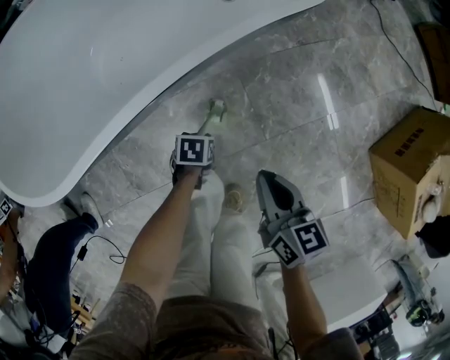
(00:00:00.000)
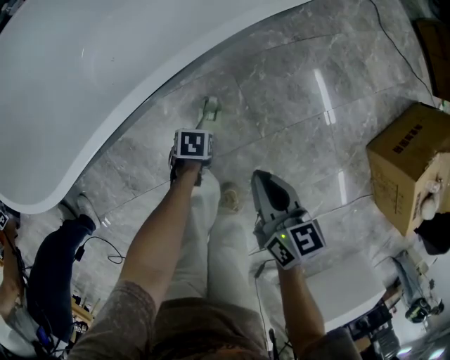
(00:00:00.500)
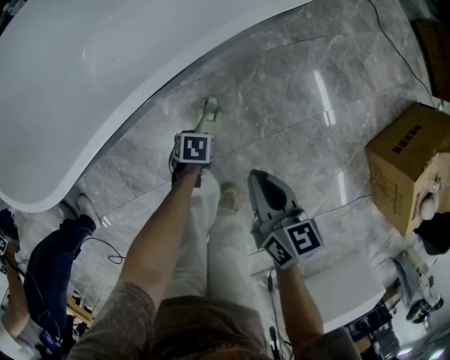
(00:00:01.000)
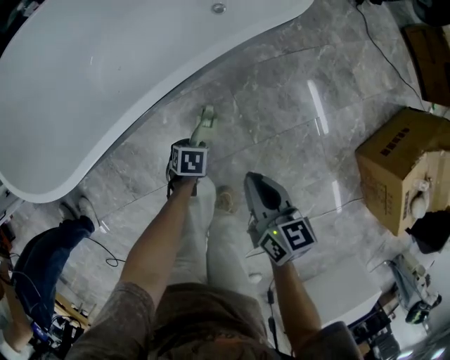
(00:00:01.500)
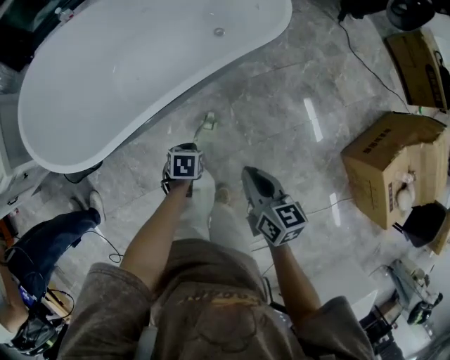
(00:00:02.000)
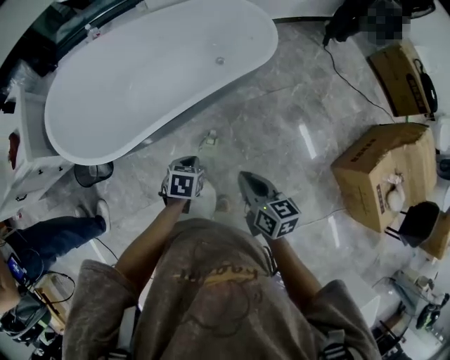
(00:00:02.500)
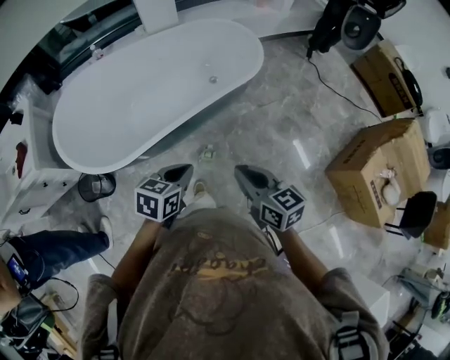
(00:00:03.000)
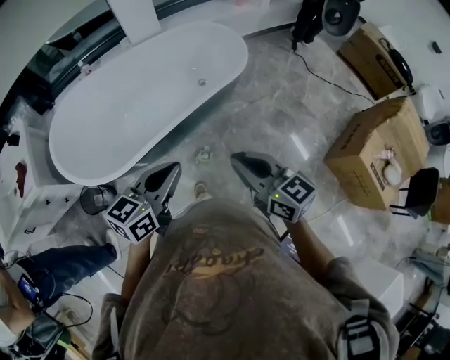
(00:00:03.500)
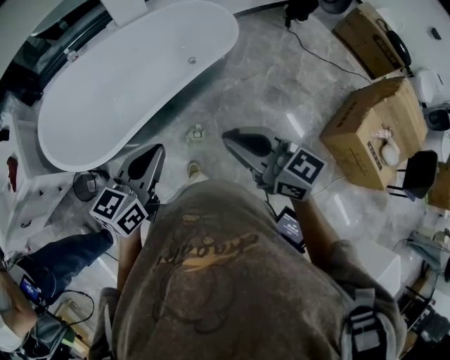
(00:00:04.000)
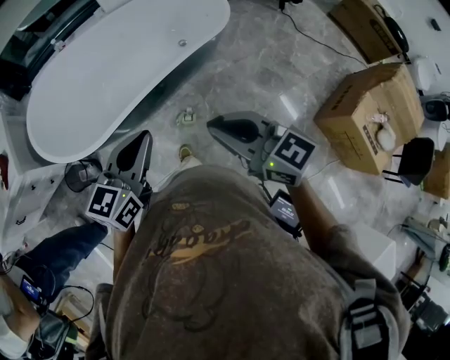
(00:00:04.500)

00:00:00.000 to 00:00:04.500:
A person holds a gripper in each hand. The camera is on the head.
00:00:00.000 to 00:00:02.000: Both grippers travel together upward, approximately 15 cm. The left gripper closes its fingers.
00:00:02.000 to 00:00:04.500: The right gripper is displaced upward by about 25 cm, and swivels some 40 degrees; the left gripper moves upward, about 40 cm, and tips its fingers upward by roughly 60 degrees.

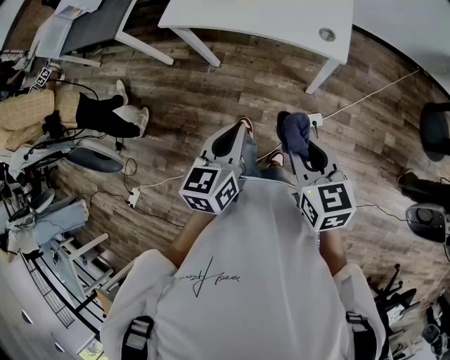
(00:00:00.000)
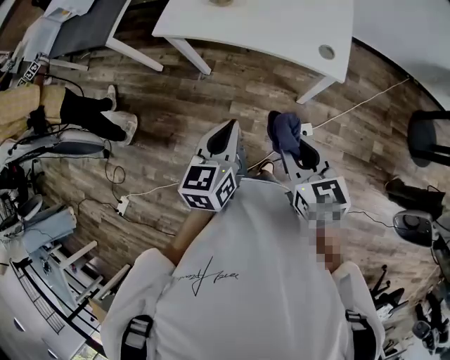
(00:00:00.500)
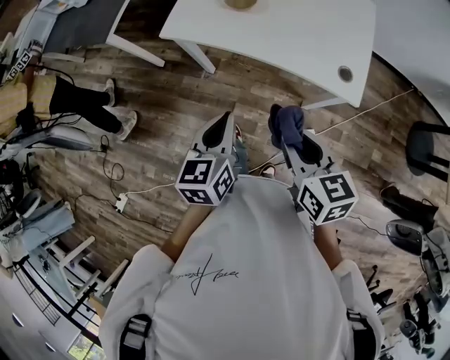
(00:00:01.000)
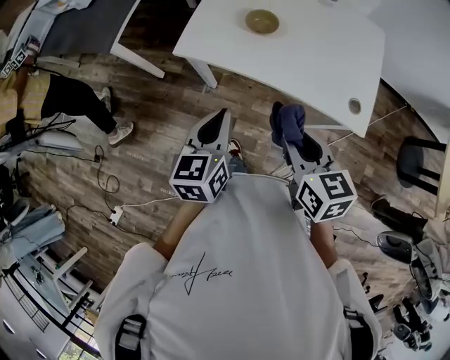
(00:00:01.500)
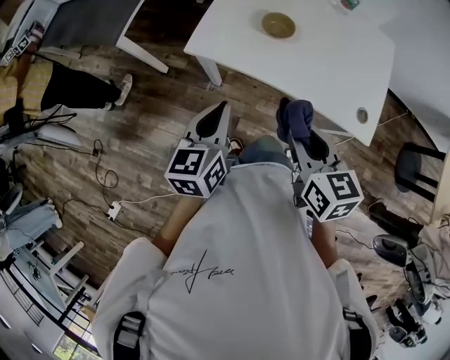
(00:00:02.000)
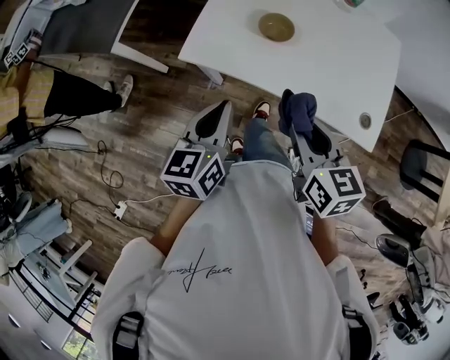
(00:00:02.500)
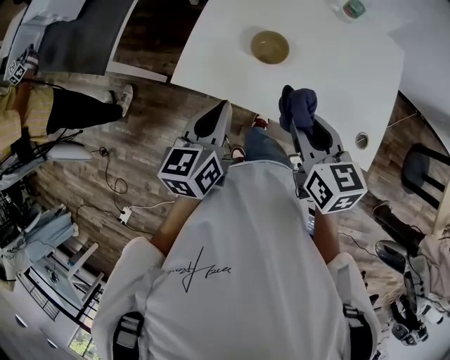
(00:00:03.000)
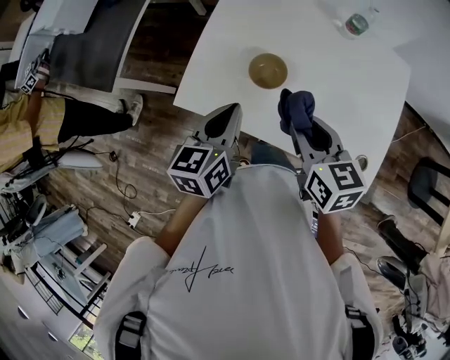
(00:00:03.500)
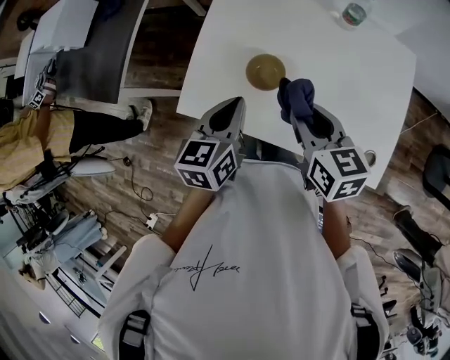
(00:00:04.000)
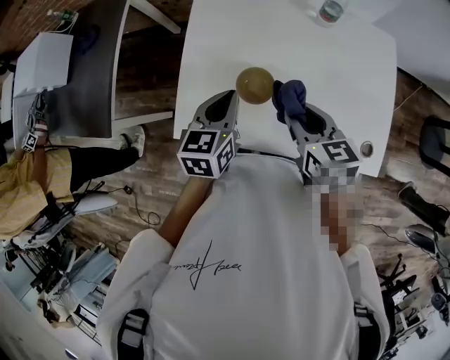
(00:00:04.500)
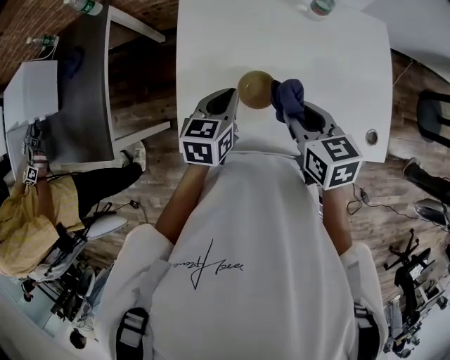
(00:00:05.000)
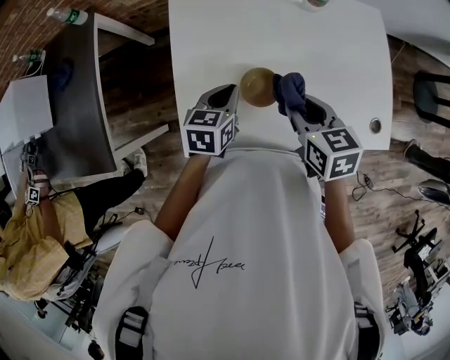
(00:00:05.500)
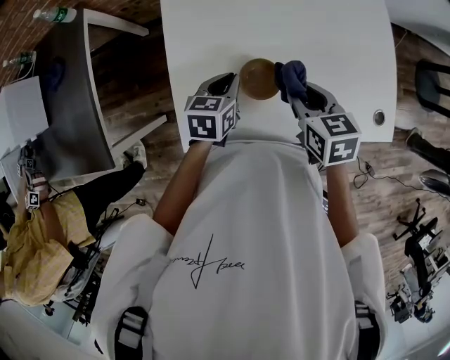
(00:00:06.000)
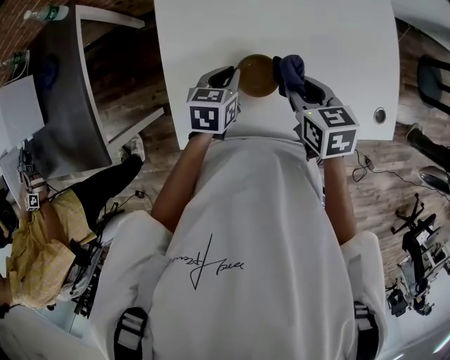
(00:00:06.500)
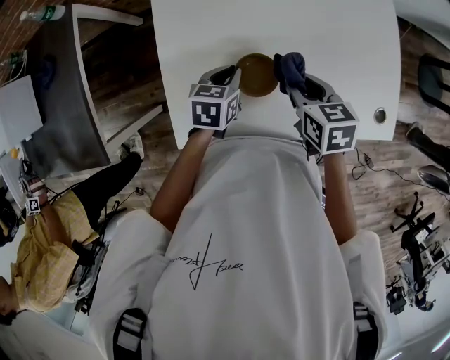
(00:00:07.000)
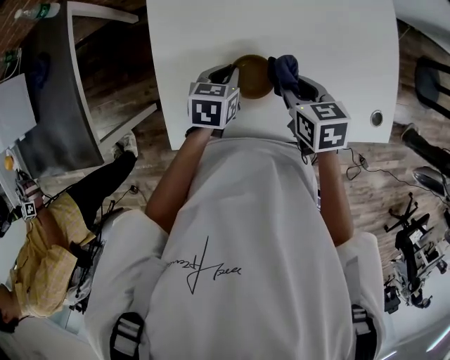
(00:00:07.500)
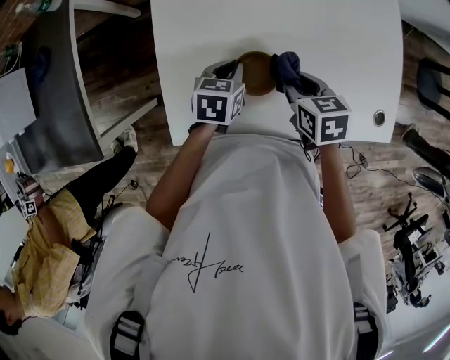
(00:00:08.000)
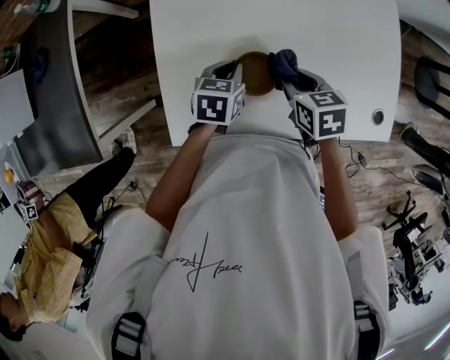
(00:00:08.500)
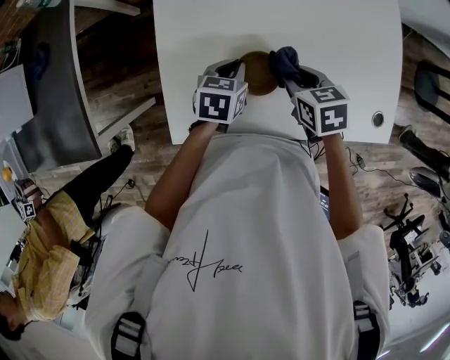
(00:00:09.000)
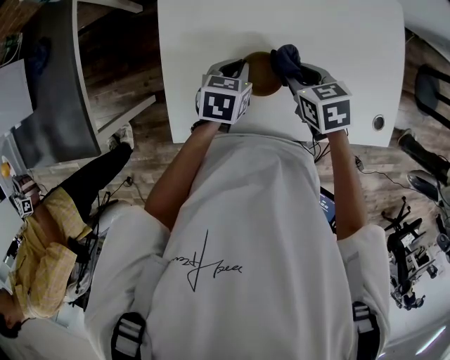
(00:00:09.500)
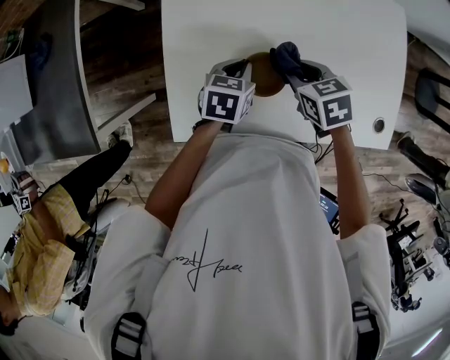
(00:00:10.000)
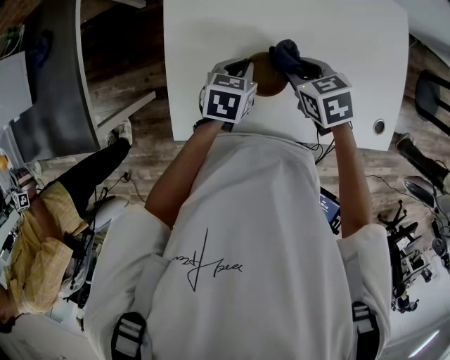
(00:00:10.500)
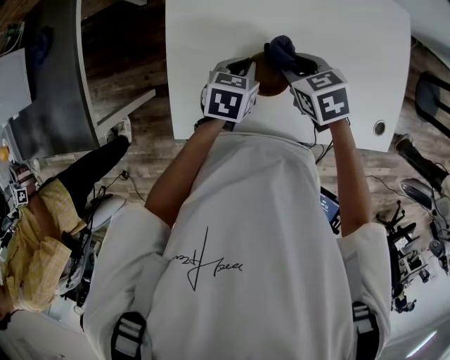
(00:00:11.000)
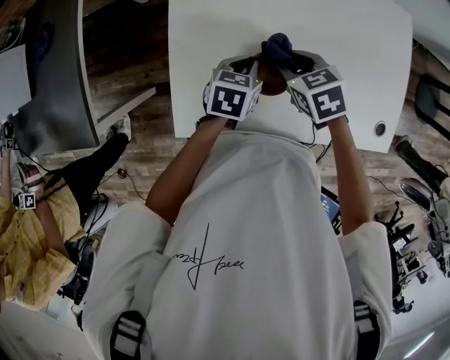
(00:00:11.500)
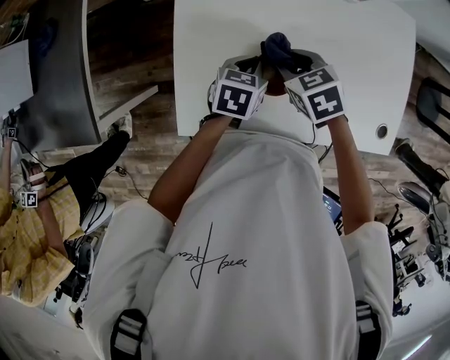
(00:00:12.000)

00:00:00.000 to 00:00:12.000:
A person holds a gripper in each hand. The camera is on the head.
00:00:00.000 to 00:00:02.000: Both grippers travel together forward and to the left, roughly 35 cm.
00:00:02.000 to 00:00:04.000: The left gripper is displaced forward and to the right by about 25 cm, while the right gripper heads forward, covering approximately 25 cm.
00:00:04.000 to 00:00:06.000: The right gripper goes about 10 cm downward, and rotates about 20 degrees, while the left gripper heads downward, covering approximately 15 cm, and turns by about 30 degrees.
00:00:06.000 to 00:00:08.000: The right gripper travels downward by about 5 cm. The left gripper shifts by roughly 5 cm.
00:00:08.000 to 00:00:10.000: The grippers move only a little.
00:00:10.000 to 00:00:12.000: The right gripper moves to the left, roughly 5 cm.

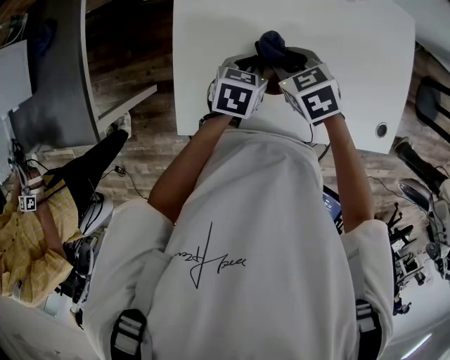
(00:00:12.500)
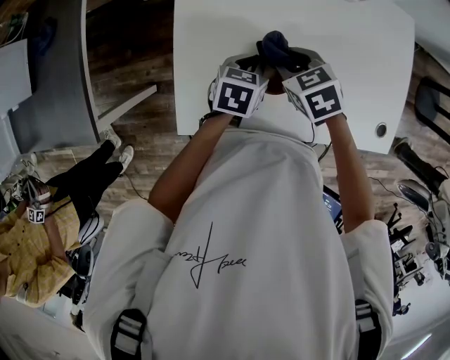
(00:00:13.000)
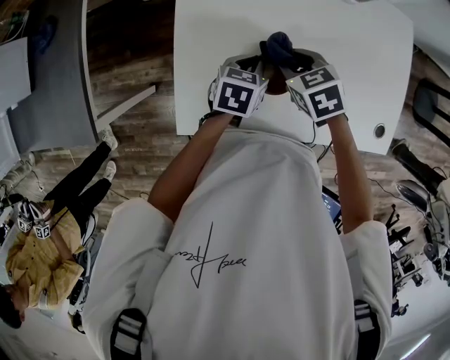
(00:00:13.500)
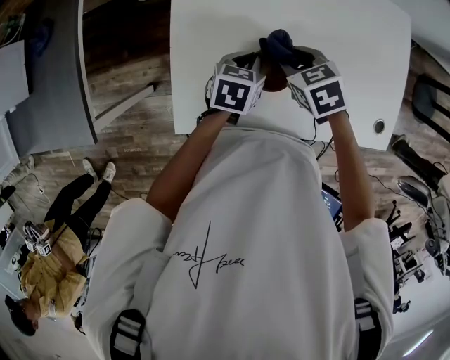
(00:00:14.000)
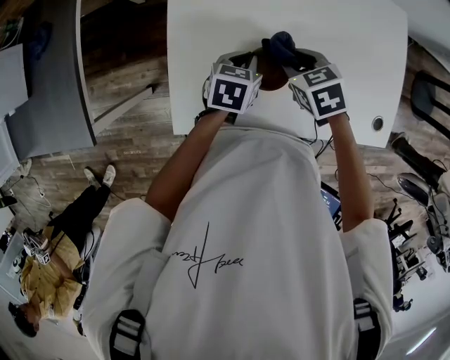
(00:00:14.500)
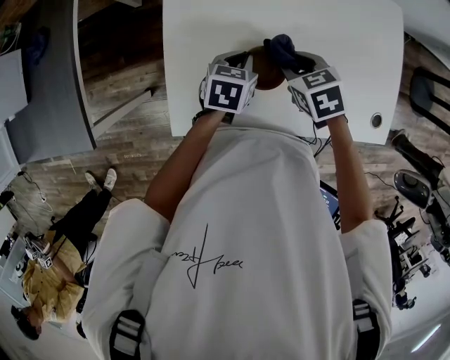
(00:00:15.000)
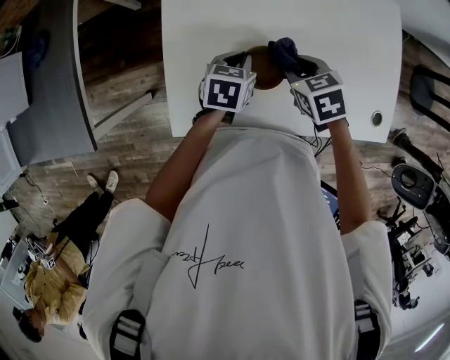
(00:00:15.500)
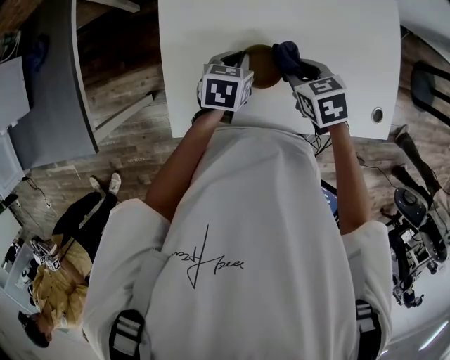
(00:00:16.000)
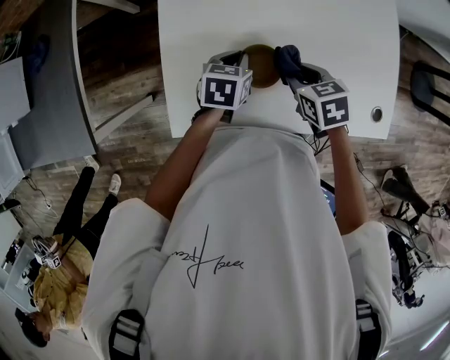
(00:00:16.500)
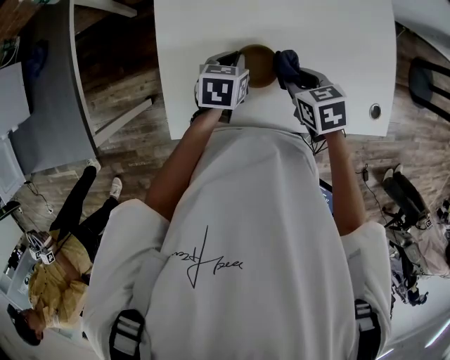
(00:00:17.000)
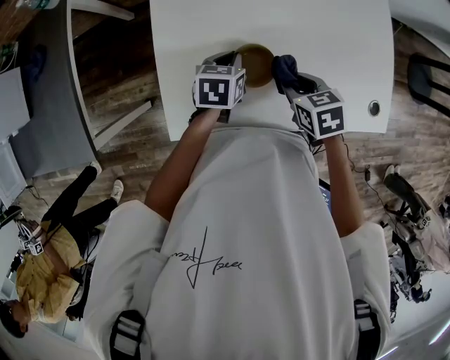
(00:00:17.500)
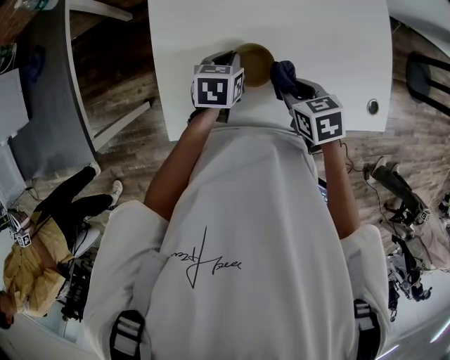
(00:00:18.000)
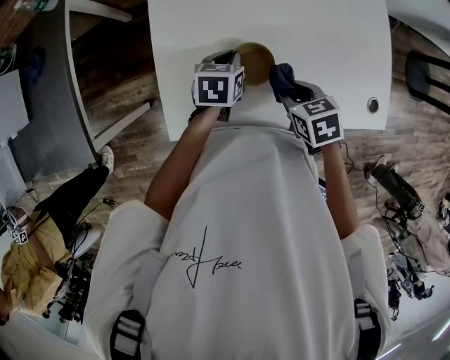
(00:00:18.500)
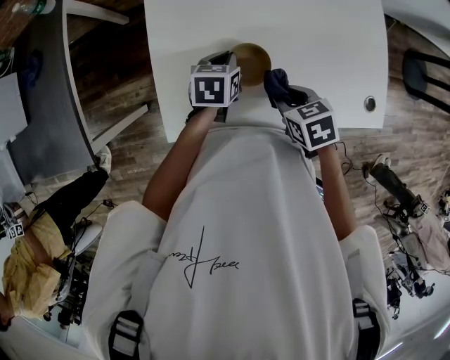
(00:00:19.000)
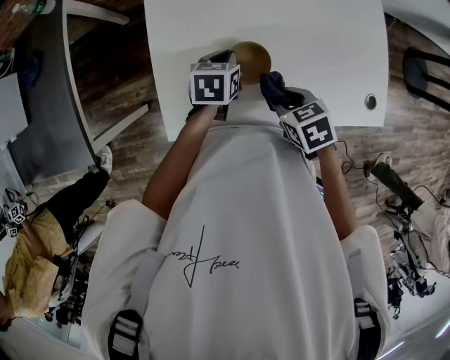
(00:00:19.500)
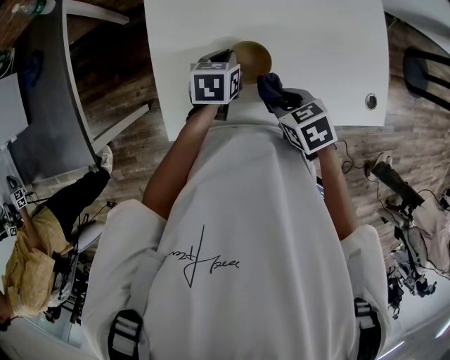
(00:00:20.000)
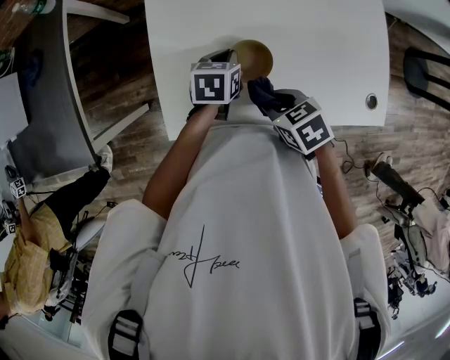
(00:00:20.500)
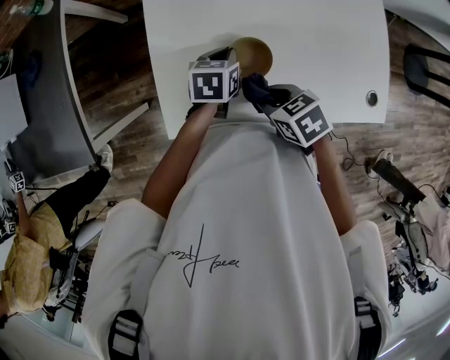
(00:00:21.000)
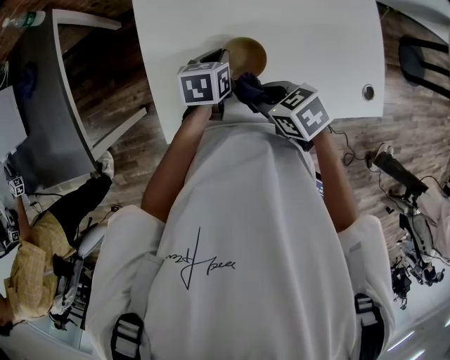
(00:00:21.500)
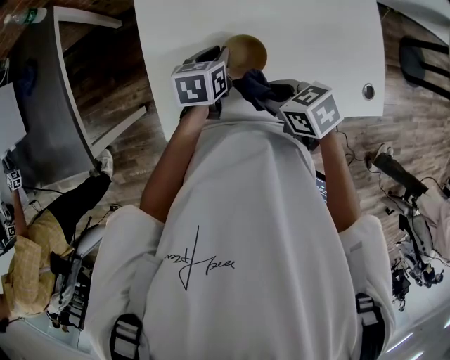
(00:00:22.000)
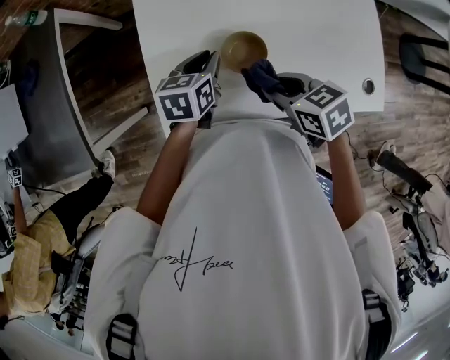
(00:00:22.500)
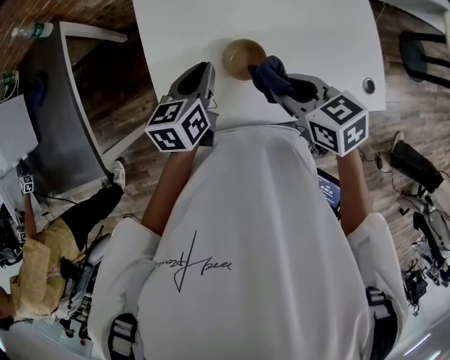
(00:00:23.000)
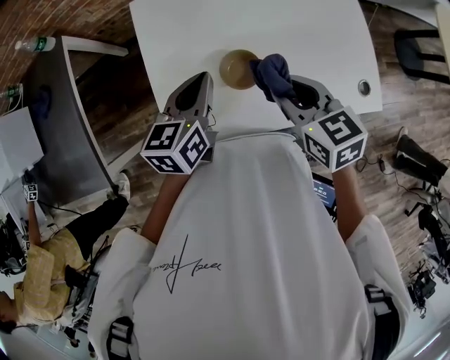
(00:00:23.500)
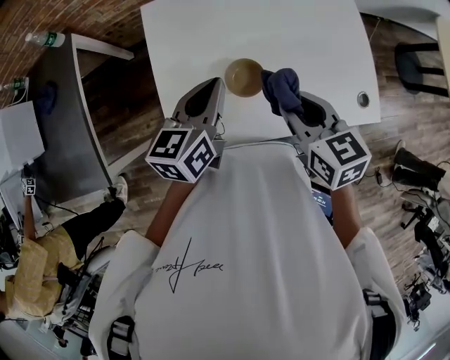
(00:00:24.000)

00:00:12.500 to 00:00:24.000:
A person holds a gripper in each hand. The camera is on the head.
00:00:12.500 to 00:00:14.500: The grippers make only small movements.
00:00:14.500 to 00:00:16.500: The right gripper changes place by approximately 5 cm.
00:00:16.500 to 00:00:18.500: The right gripper travels backward by approximately 5 cm.
00:00:18.500 to 00:00:20.000: There are only small adjustments of the grippers.
00:00:20.000 to 00:00:22.000: The grippers stay close to where they were, moving slightly.
00:00:22.000 to 00:00:24.000: The grippers both shift upward by some 15 cm. The left gripper changes its angle by approximately 30 degrees, and closes up. The right gripper swivels approximately 40 degrees.
